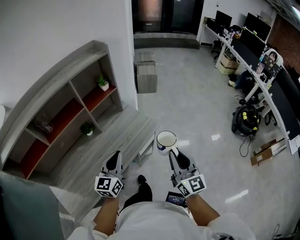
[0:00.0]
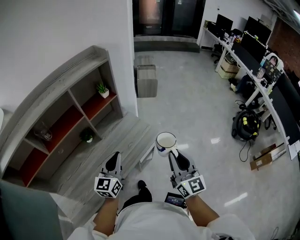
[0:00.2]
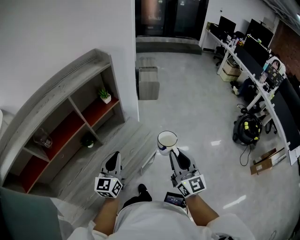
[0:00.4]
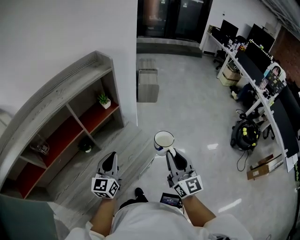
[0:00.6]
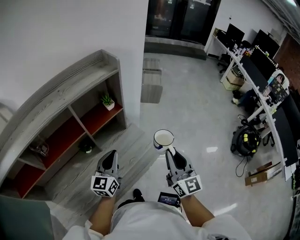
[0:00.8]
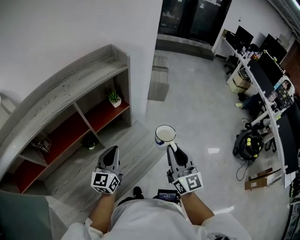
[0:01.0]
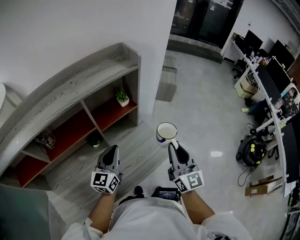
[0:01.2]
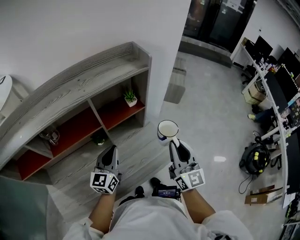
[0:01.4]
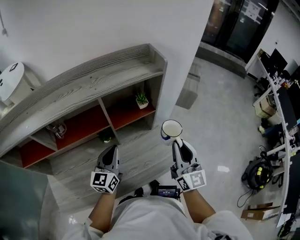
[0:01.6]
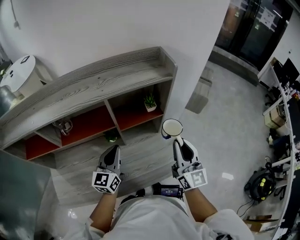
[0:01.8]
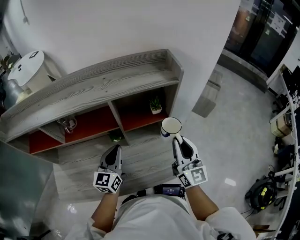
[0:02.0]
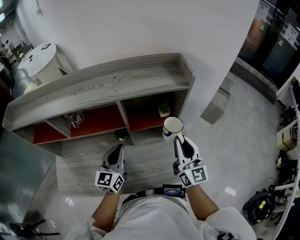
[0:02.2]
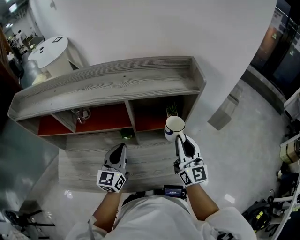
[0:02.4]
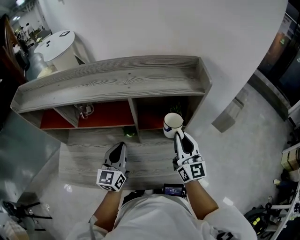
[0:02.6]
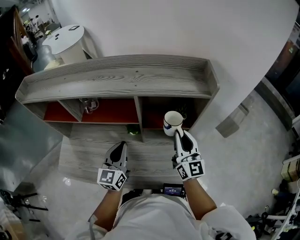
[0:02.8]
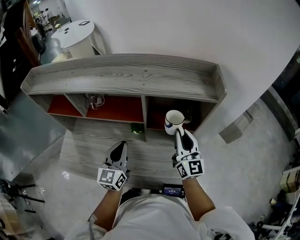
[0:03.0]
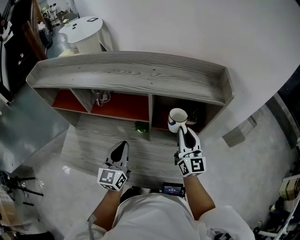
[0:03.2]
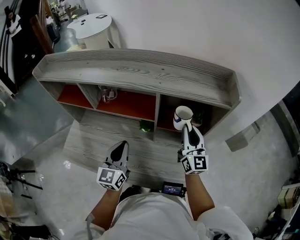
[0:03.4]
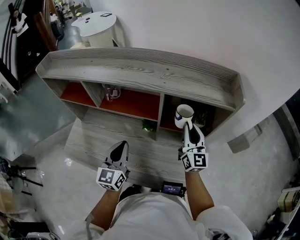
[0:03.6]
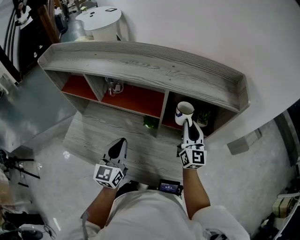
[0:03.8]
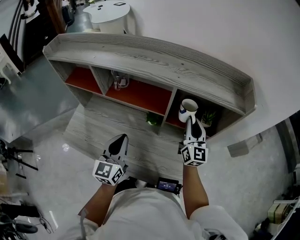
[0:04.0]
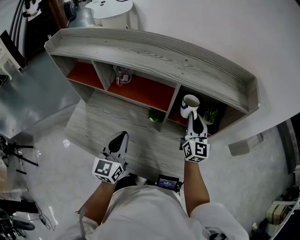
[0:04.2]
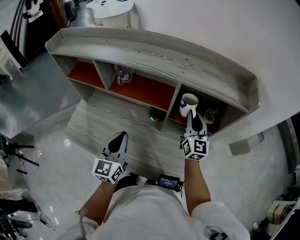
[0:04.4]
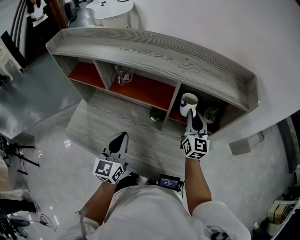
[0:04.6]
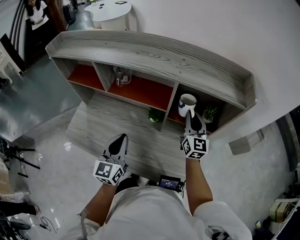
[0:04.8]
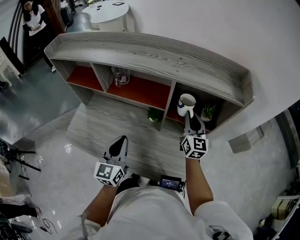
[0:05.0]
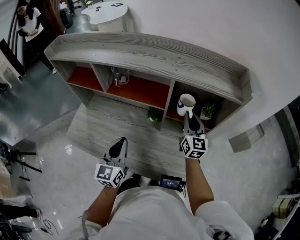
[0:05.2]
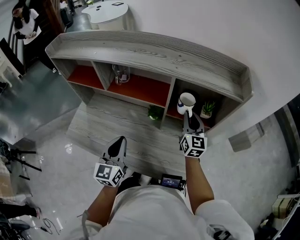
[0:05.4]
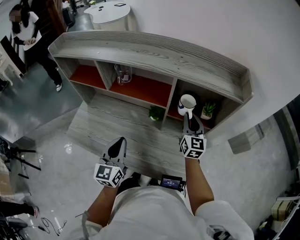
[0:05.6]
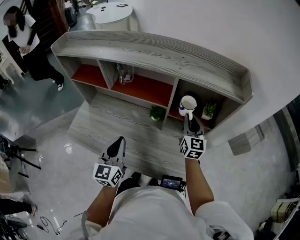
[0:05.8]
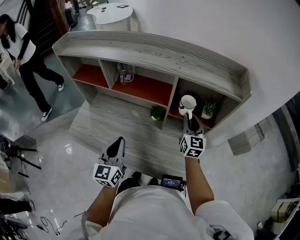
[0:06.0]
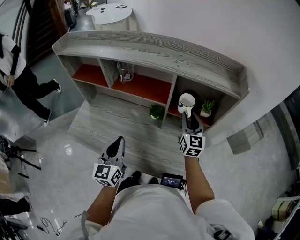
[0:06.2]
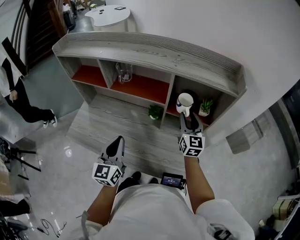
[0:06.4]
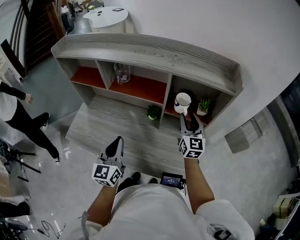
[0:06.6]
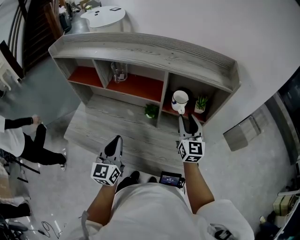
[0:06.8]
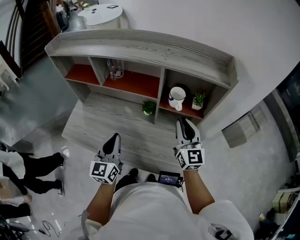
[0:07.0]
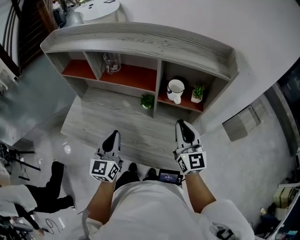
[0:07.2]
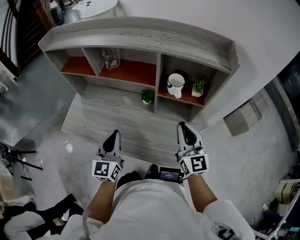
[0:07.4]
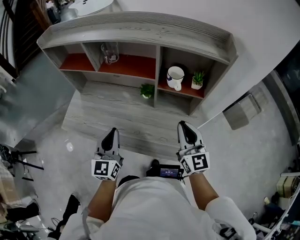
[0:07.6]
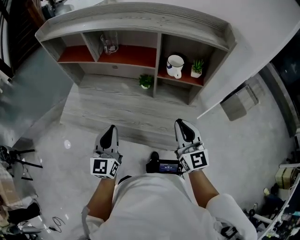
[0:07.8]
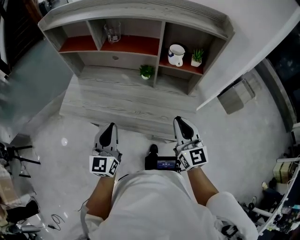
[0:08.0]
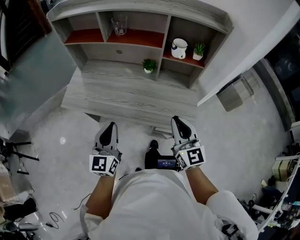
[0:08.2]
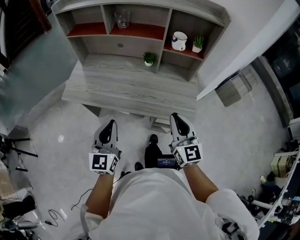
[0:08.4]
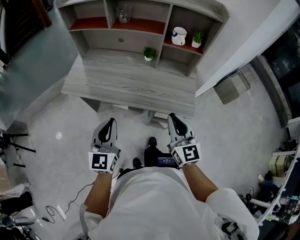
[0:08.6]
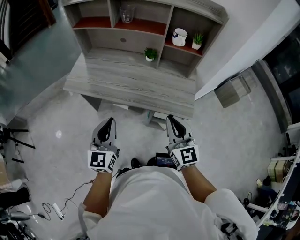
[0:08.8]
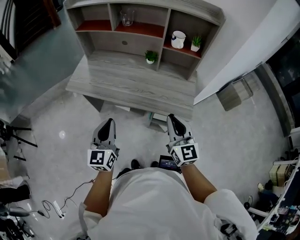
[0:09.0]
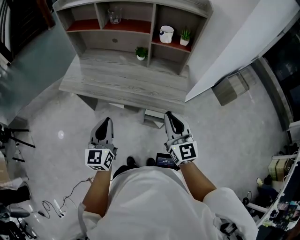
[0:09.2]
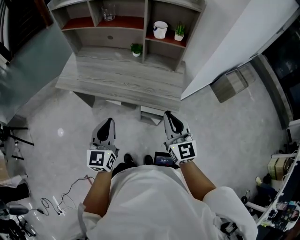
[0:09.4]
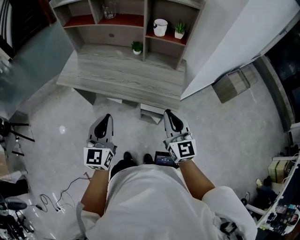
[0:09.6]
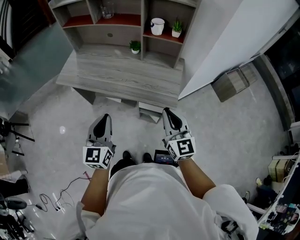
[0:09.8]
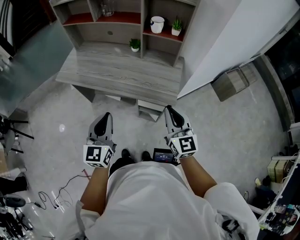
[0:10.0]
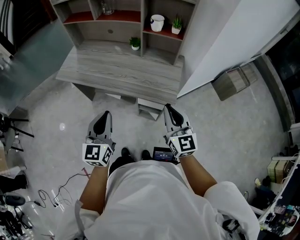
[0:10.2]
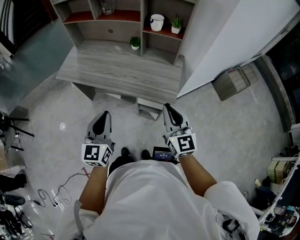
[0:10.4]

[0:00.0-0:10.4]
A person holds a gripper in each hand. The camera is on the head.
0.0 to 1.4 s: The right gripper travels forward by some 25 cm, while the left gripper heads forward and to the left, covering about 20 cm.
1.4 to 3.0 s: The right gripper moves about 20 cm, and swivels about 30 degrees; the left gripper changes place by approximately 10 cm, and swivels roughly 40 degrees.
3.0 to 4.4 s: The right gripper is displaced forward by approximately 10 cm. The left gripper moves to the left, roughly 5 cm.
4.4 to 6.0 s: The left gripper heads backward, covering approximately 5 cm.
6.0 to 7.4 s: The right gripper shifts about 15 cm backward.
7.4 to 9.0 s: The two grippers go approximately 25 cm backward.
9.0 to 10.4 s: The left gripper travels to the right and backward by about 15 cm. Meanwhile the right gripper travels to the right by roughly 10 cm.

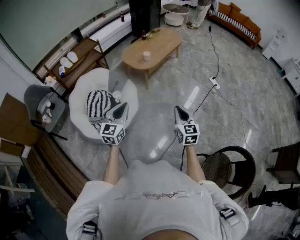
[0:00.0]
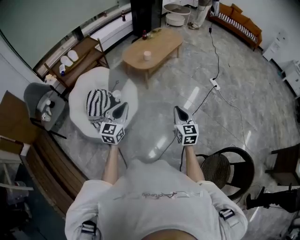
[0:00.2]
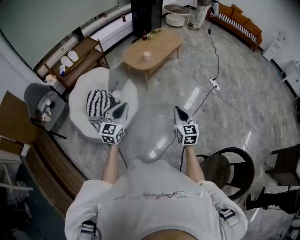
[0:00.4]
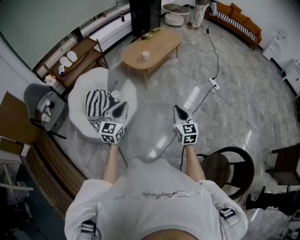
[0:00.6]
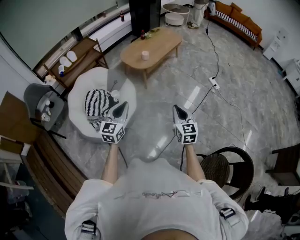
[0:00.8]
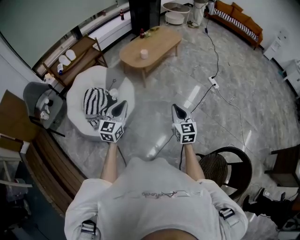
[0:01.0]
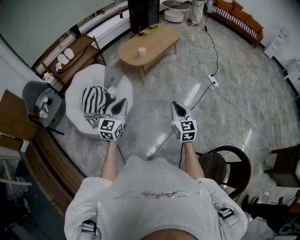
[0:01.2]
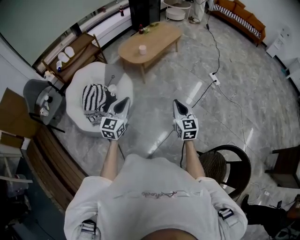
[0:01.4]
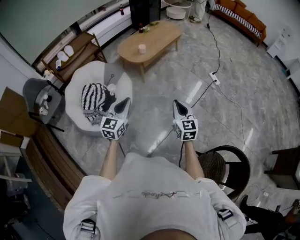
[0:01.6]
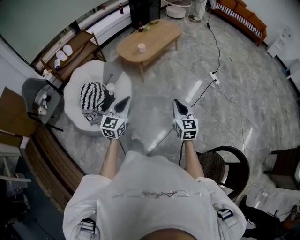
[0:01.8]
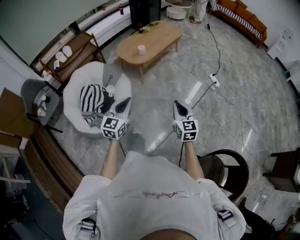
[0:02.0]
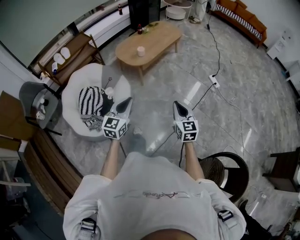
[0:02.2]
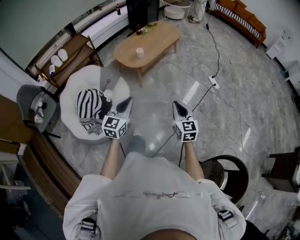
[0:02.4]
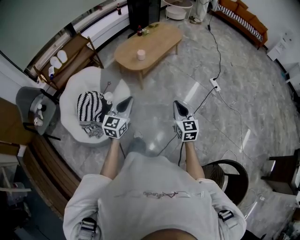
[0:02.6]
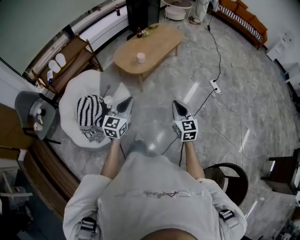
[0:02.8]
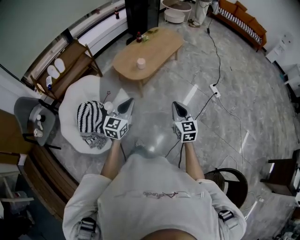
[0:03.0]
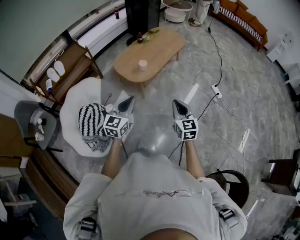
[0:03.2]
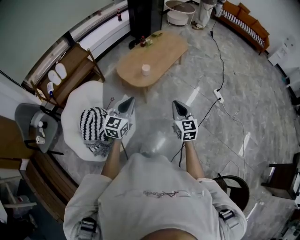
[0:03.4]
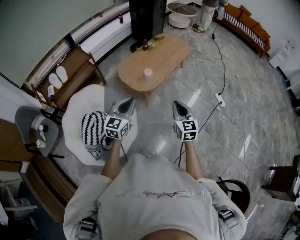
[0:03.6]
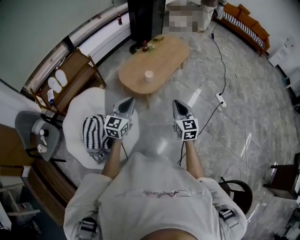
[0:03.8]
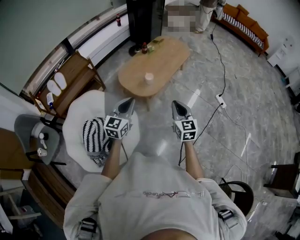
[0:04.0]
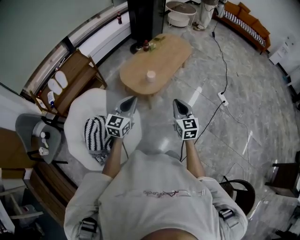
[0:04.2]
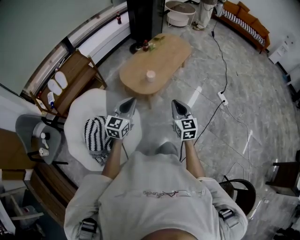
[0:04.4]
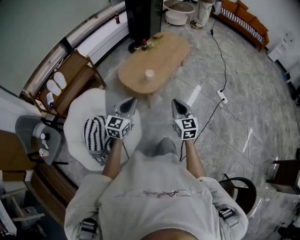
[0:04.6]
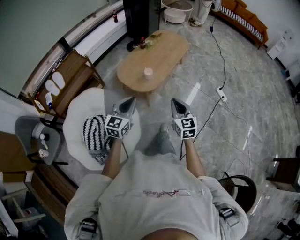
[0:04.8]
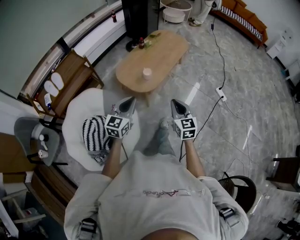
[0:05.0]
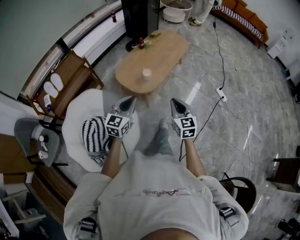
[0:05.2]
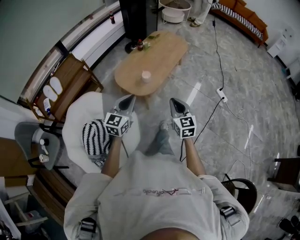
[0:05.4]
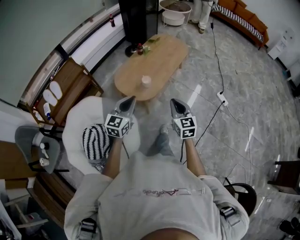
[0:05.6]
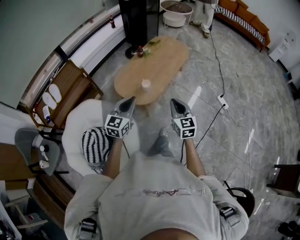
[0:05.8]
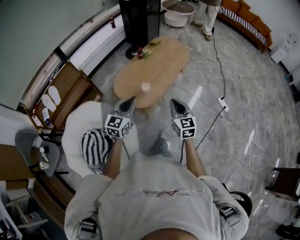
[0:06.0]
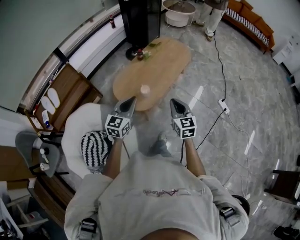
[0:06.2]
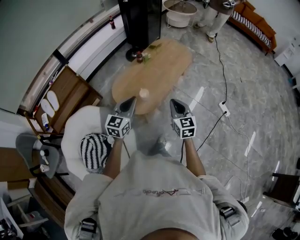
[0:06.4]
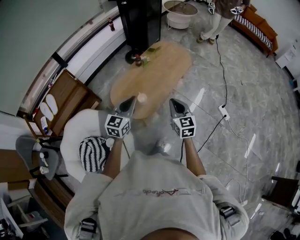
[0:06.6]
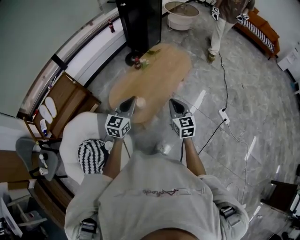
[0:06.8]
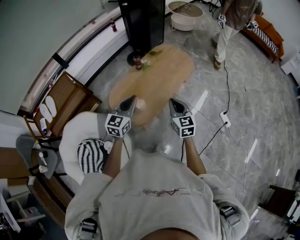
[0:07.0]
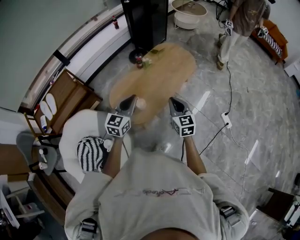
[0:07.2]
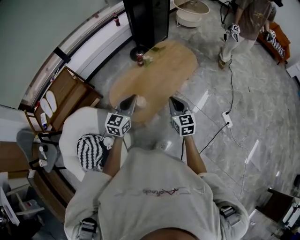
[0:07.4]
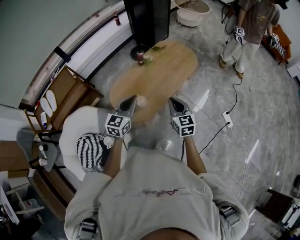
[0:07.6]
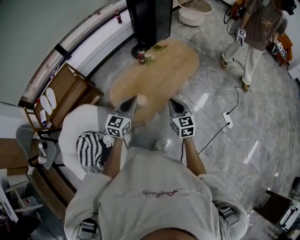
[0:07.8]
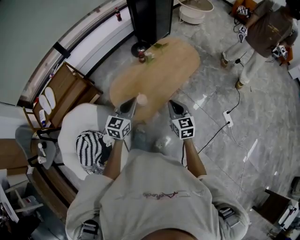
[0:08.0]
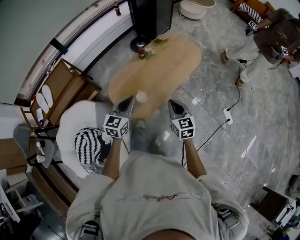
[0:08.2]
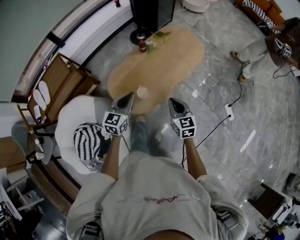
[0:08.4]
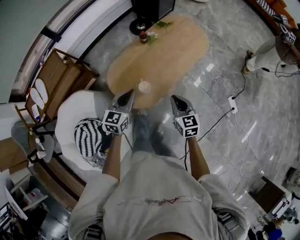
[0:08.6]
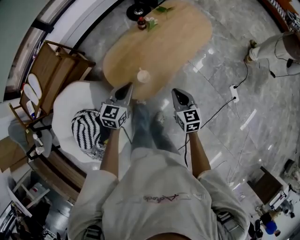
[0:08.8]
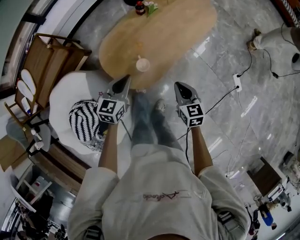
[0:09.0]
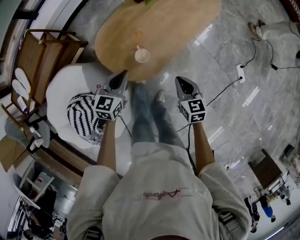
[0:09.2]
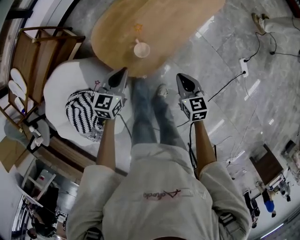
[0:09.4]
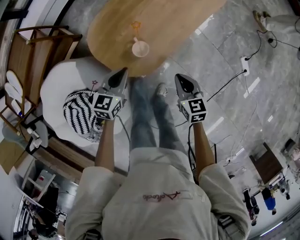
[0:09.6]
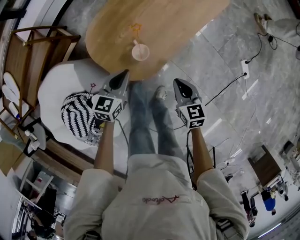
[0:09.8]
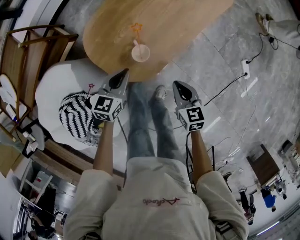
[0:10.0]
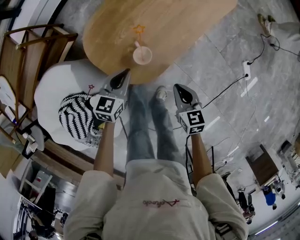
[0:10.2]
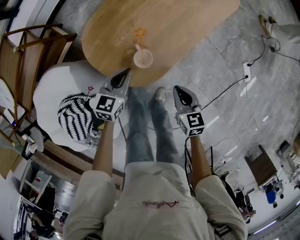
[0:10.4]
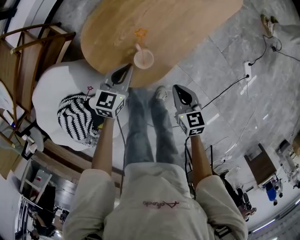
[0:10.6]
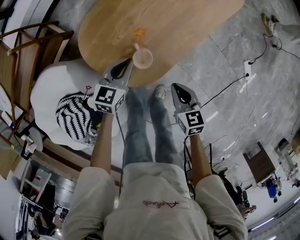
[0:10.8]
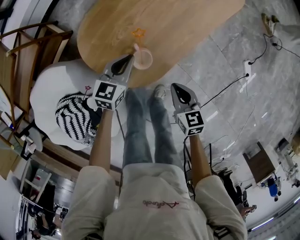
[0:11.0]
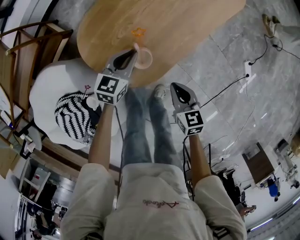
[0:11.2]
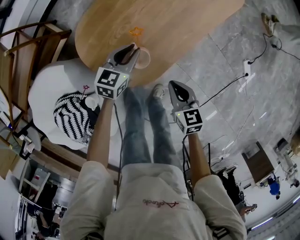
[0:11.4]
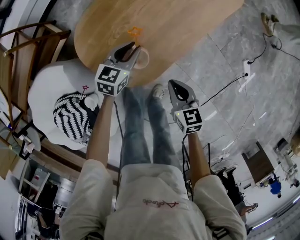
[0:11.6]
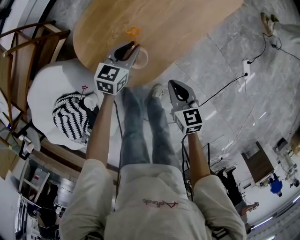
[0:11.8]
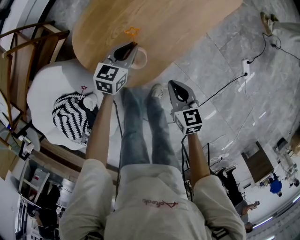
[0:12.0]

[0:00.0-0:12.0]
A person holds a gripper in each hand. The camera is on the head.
0.0 to 1.6 s: The two grippers go some 10 cm to the right.
1.6 to 3.0 s: The two grippers go roughly 30 cm forward.
3.0 to 4.4 s: The two grippers go about 25 cm forward and to the left.
4.4 to 6.0 s: Both grippers travel together forward, approximately 20 cm.
6.0 to 7.6 s: The left gripper moves forward and to the right, some 25 cm; the right gripper goes some 25 cm forward.
7.6 to 9.0 s: The right gripper is displaced downward by about 20 cm; the left gripper goes about 25 cm downward and to the left.
9.0 to 10.4 s: The grippers both shift downward by about 20 cm.
10.4 to 12.0 s: The left gripper is displaced forward and downward by roughly 10 cm.

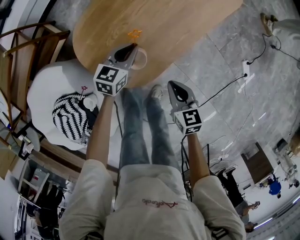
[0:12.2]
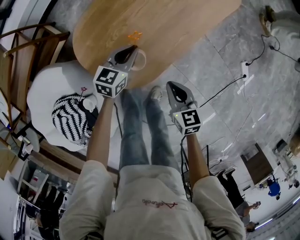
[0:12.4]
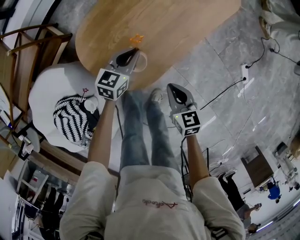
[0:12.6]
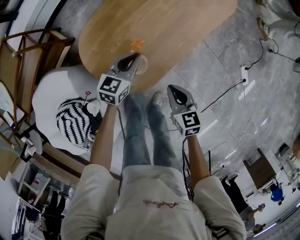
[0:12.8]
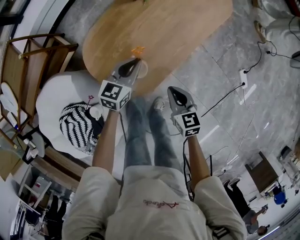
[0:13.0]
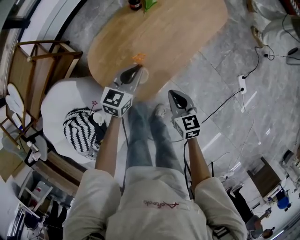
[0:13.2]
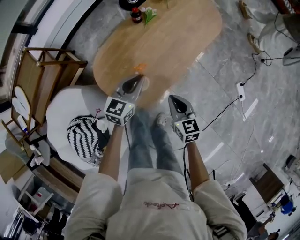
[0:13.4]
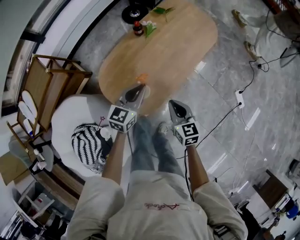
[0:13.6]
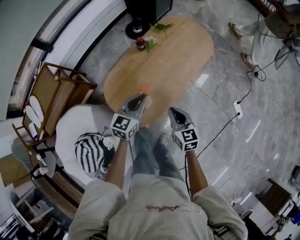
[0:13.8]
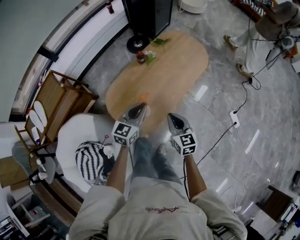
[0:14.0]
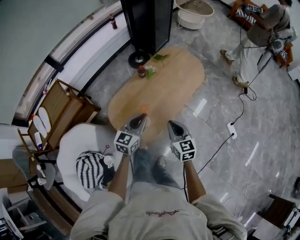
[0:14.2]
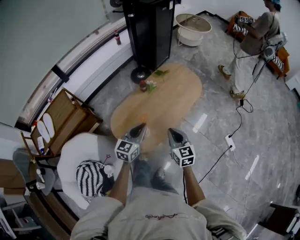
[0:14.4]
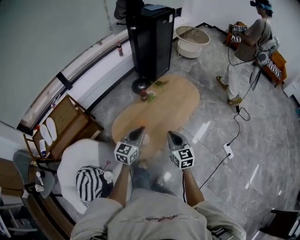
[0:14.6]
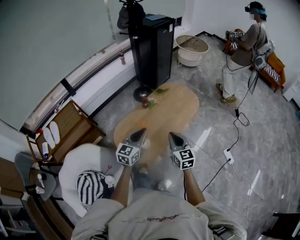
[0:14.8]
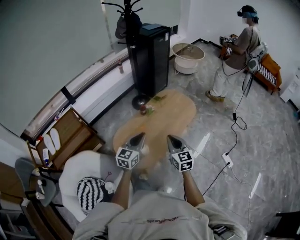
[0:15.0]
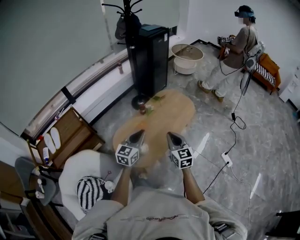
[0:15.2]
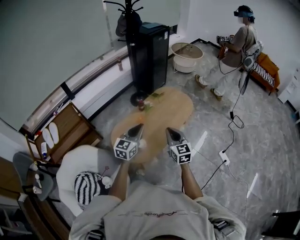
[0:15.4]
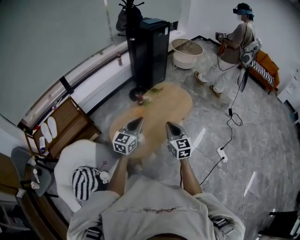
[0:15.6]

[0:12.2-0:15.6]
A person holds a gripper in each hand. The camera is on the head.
12.2 to 13.8 s: The grippers both shift upward by about 25 cm.
13.8 to 15.6 s: The left gripper goes roughly 30 cm upward and backward, while the right gripper travels upward by some 25 cm, and swivels approximately 20 degrees.
